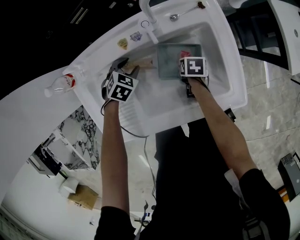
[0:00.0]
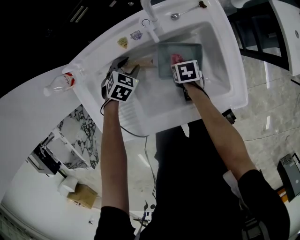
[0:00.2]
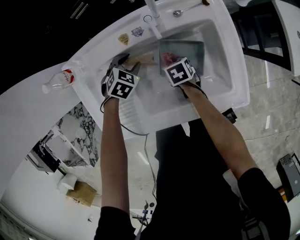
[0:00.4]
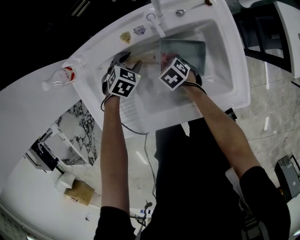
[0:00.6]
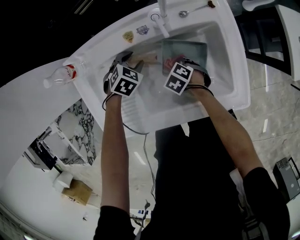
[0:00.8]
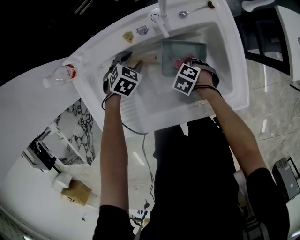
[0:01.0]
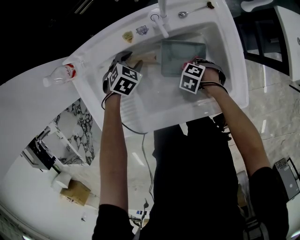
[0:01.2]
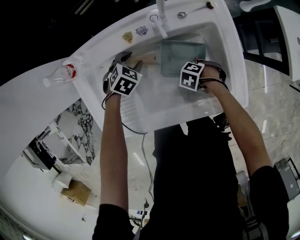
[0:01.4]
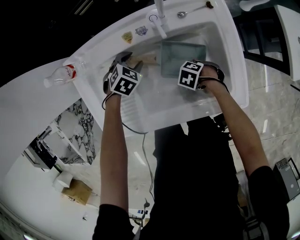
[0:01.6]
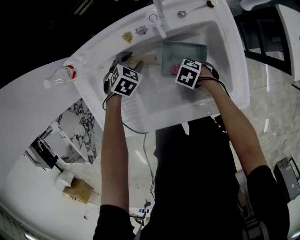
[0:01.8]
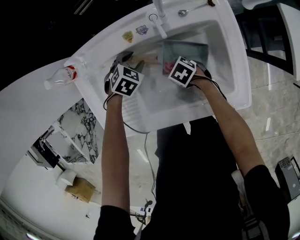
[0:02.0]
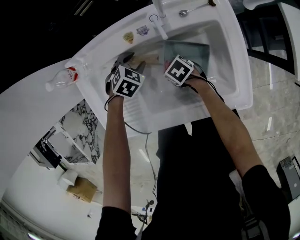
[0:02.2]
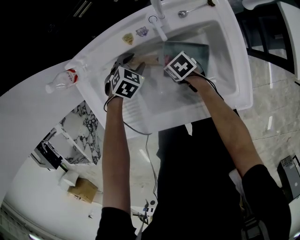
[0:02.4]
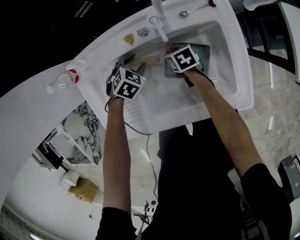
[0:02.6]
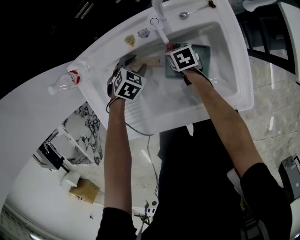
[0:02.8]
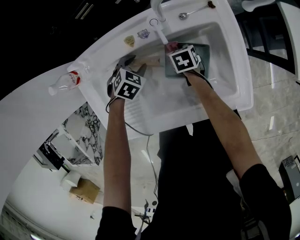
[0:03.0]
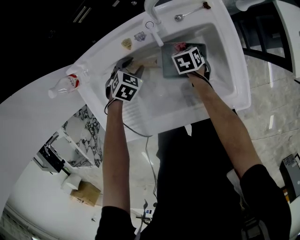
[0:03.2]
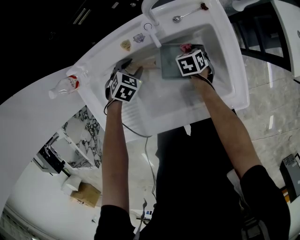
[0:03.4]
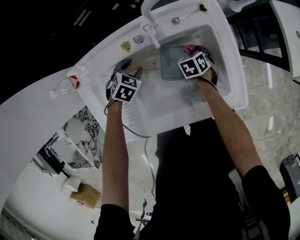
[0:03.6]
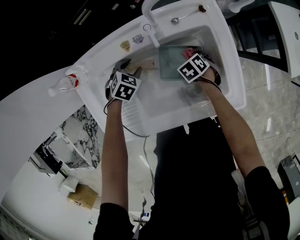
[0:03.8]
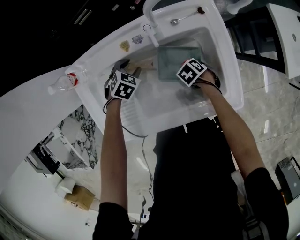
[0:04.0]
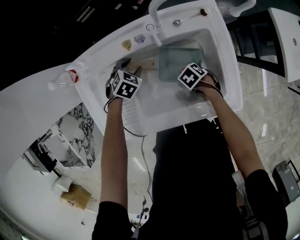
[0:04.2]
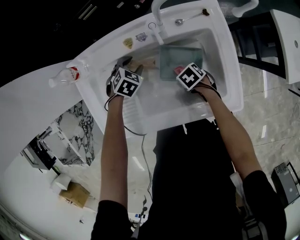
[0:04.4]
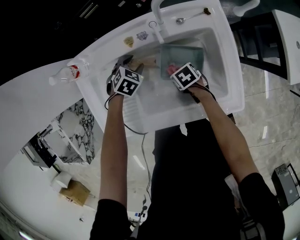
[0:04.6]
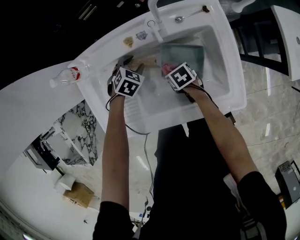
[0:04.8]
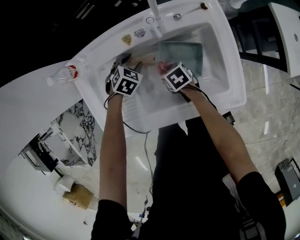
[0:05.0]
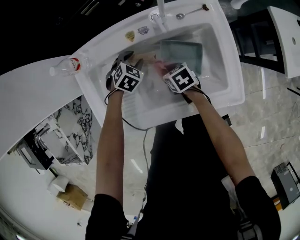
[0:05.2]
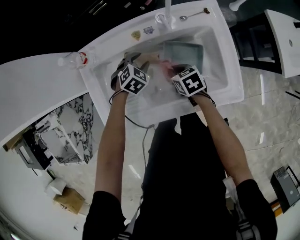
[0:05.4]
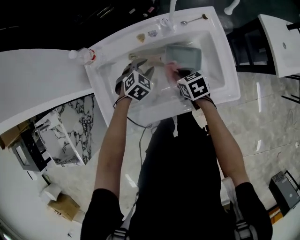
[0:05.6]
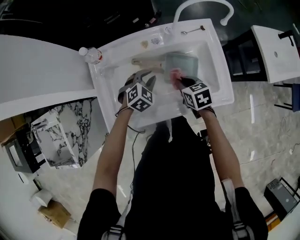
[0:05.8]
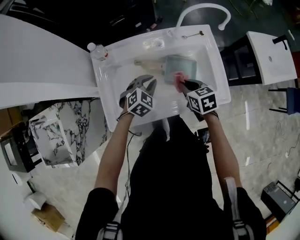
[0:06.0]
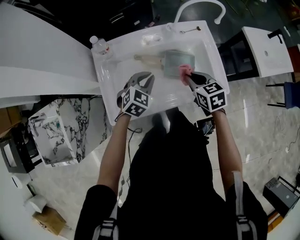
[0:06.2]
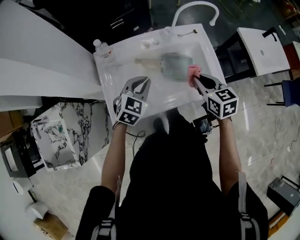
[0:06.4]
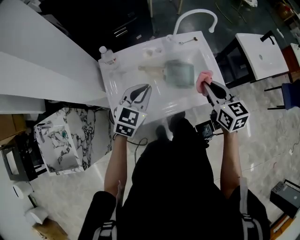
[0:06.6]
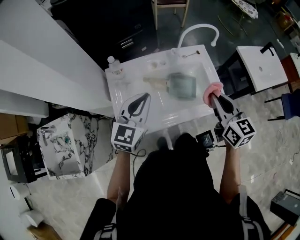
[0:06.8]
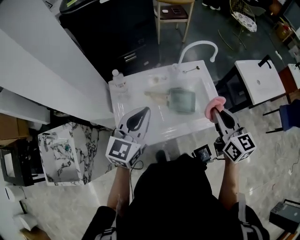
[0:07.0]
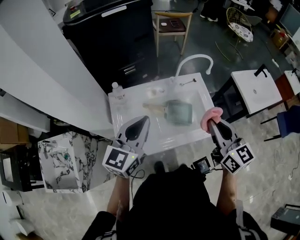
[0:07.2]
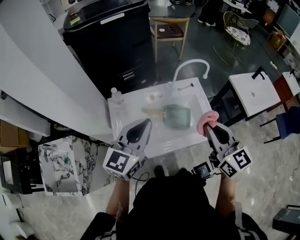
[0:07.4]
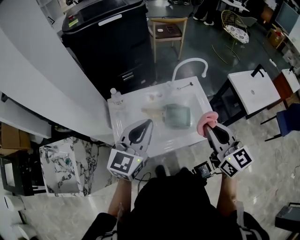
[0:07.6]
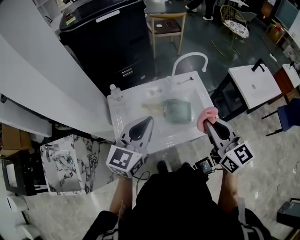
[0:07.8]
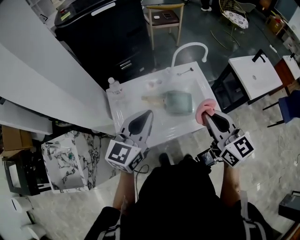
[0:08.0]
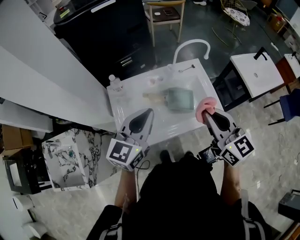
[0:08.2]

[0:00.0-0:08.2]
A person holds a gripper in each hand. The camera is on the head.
0:00.0 to 0:01.6: The right gripper rotates around the line of its fingers by about 80 degrees, counterclockwise from behind.
0:01.6 to 0:03.2: The right gripper changes place by approximately 15 cm, and twists approximately 50 degrees clockwise, seen from behind.
0:03.2 to 0:05.0: The right gripper changes place by approximately 15 cm, and changes its angle by about 30 degrees.
0:05.0 to 0:06.6: Both grippers travel together upward, about 35 cm. The right gripper angles its fingers upward, by approximately 40 degrees. The left gripper tilts its fingers about 40 degrees upward, and closes up.
0:06.6 to 0:08.2: The left gripper moves upward, approximately 15 cm, and turns by some 20 degrees. The right gripper shifts approximately 15 cm upward and backward.

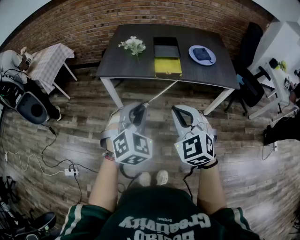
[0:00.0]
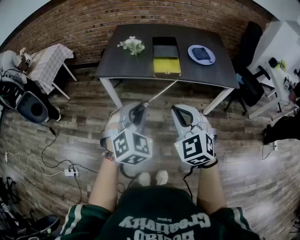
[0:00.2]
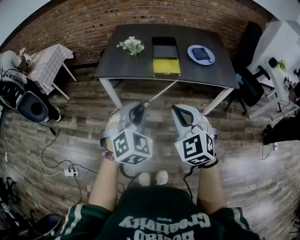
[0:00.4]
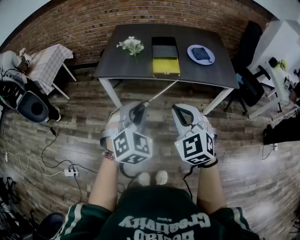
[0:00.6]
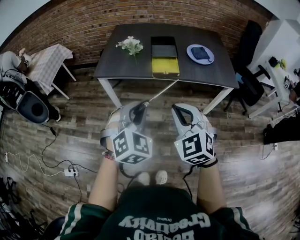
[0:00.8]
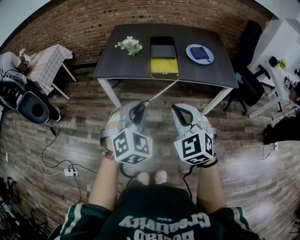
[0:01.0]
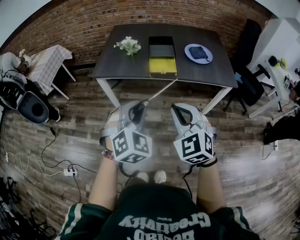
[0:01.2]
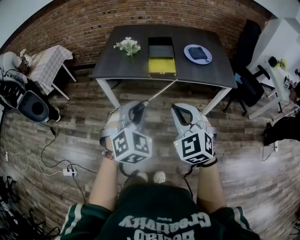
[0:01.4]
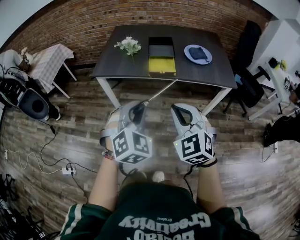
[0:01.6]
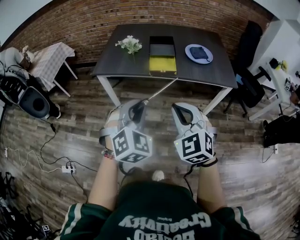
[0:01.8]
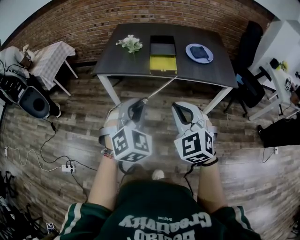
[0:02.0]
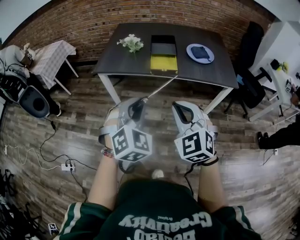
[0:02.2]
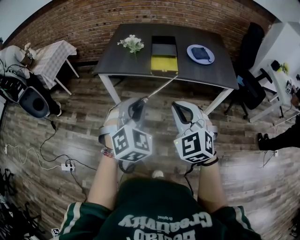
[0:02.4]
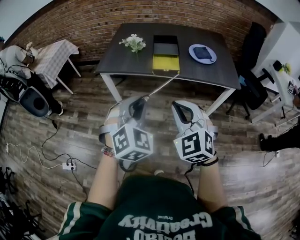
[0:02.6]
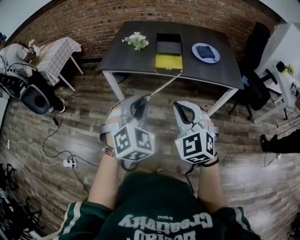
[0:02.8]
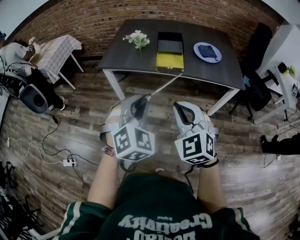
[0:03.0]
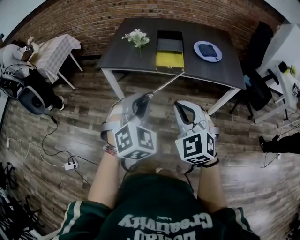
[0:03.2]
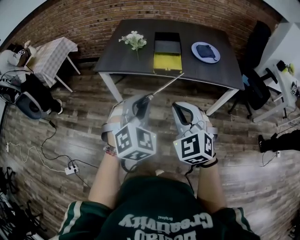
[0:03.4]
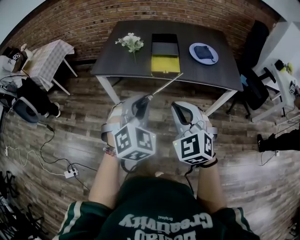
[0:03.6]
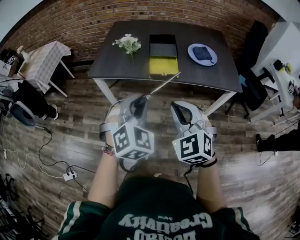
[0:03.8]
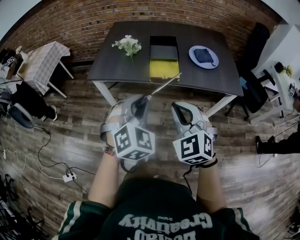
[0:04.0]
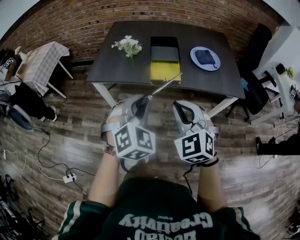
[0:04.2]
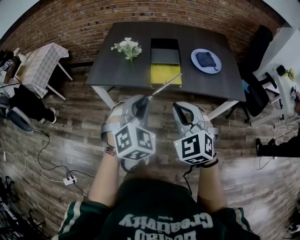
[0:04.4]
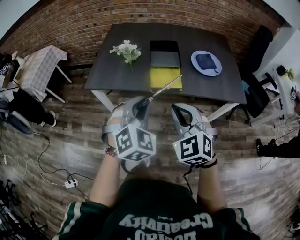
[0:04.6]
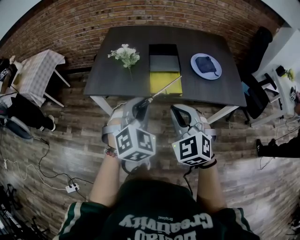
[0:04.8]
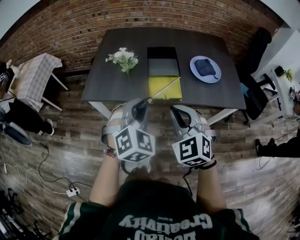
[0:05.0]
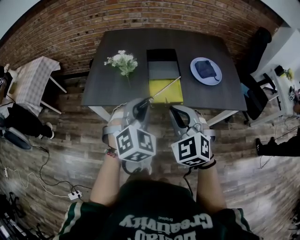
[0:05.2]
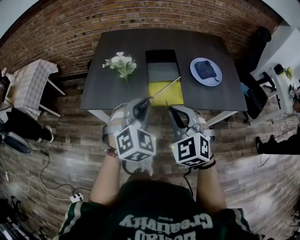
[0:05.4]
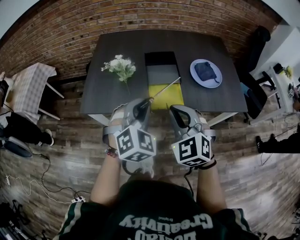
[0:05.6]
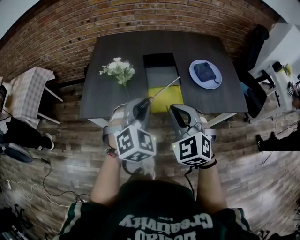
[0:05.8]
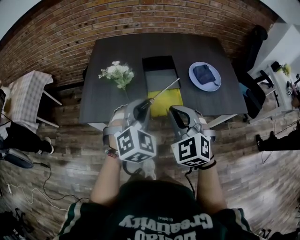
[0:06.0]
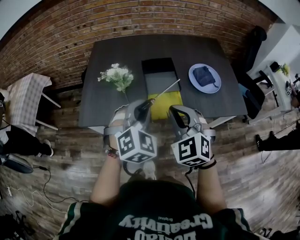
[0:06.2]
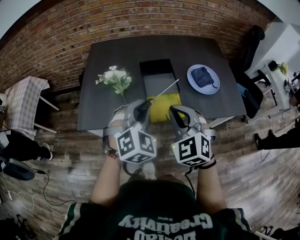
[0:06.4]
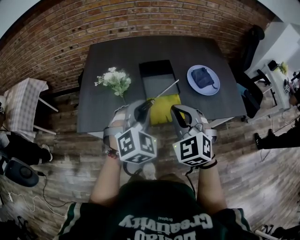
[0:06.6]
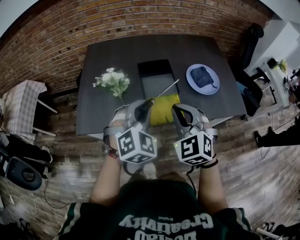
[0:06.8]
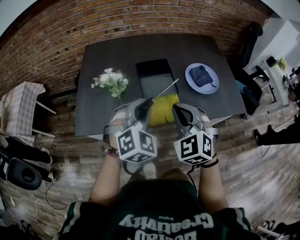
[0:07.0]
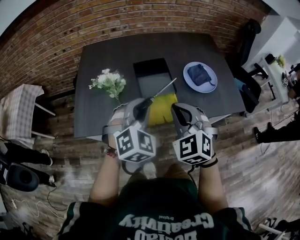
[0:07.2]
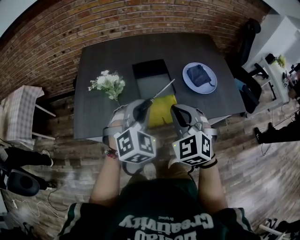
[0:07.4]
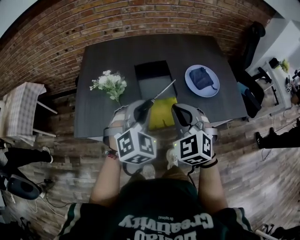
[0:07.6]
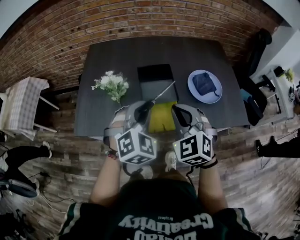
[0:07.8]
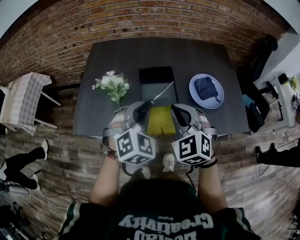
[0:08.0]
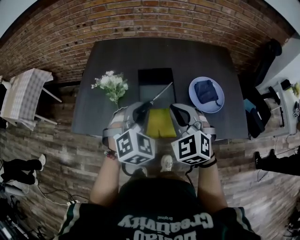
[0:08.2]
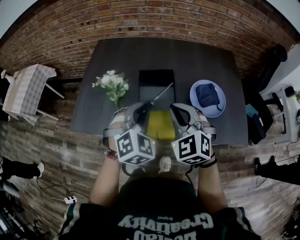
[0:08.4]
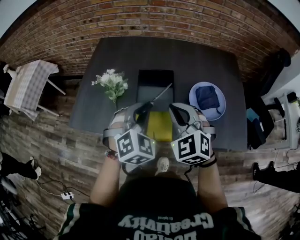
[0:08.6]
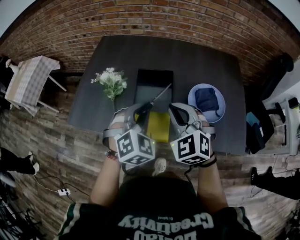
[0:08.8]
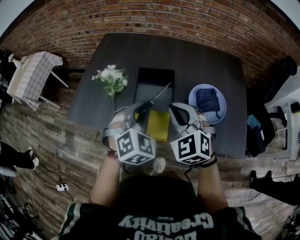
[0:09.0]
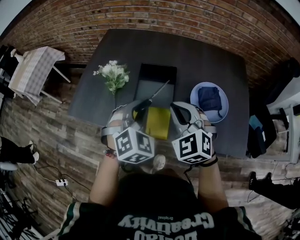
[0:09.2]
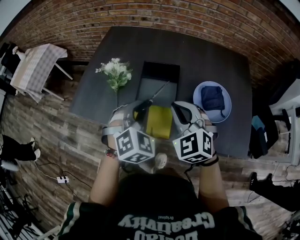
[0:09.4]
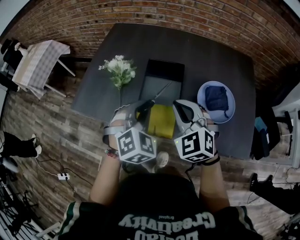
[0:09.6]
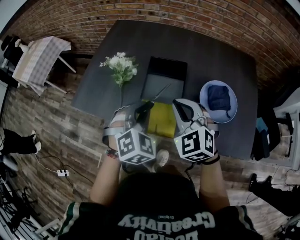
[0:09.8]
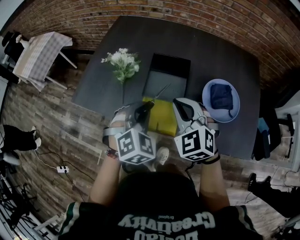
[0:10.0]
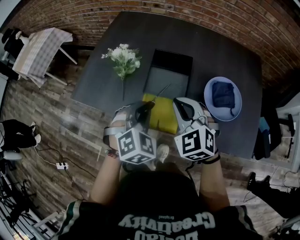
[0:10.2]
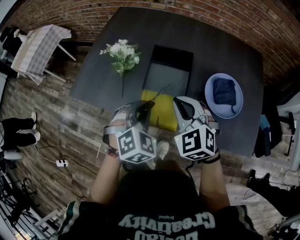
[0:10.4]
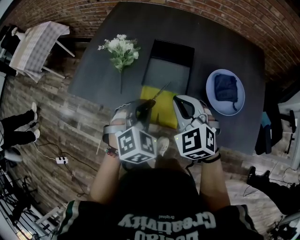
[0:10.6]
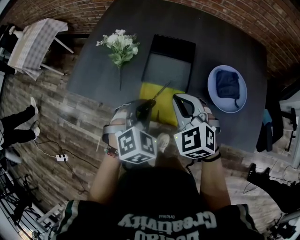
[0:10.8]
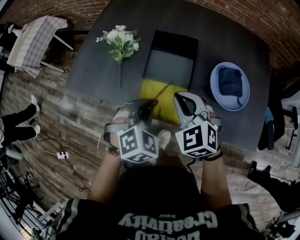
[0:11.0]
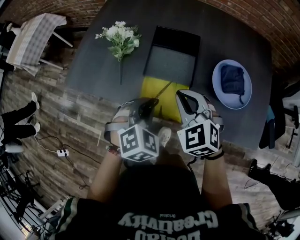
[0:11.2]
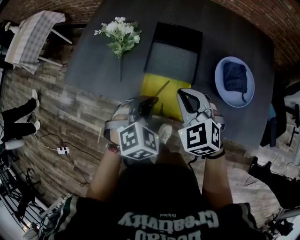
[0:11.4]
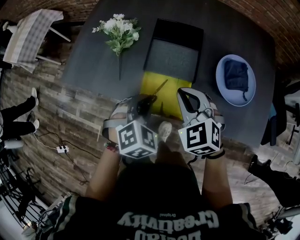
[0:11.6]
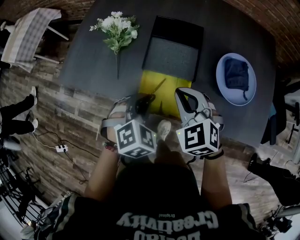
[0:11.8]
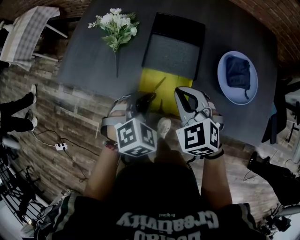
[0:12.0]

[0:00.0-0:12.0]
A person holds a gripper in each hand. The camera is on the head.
0:00.0 to 0:01.6: Both grippers travel together to the right, about 5 cm.
0:01.6 to 0:03.0: The grippers move only a little.
0:03.0 to 0:04.4: The grippers both shift forward by some 20 cm.
0:04.4 to 0:06.0: Both grippers move forward, roughly 20 cm.
0:06.0 to 0:07.6: The two grippers go approximately 10 cm forward.
0:07.6 to 0:09.0: The right gripper goes about 10 cm forward and to the right, and swivels roughly 20 degrees, while the left gripper moves to the right and forward, approximately 10 cm.
0:09.0 to 0:10.4: Both grippers move downward, some 10 cm.
0:10.4 to 0:12.0: The grippers both shift downward by approximately 10 cm.

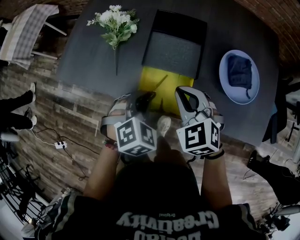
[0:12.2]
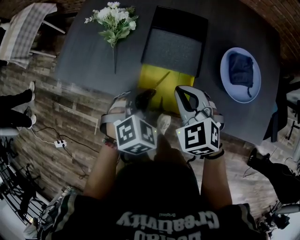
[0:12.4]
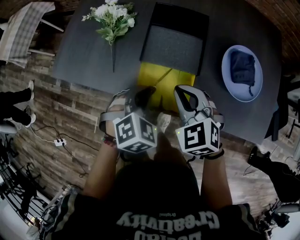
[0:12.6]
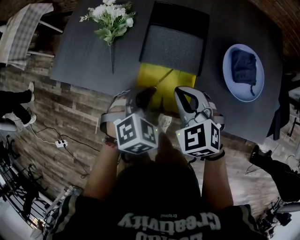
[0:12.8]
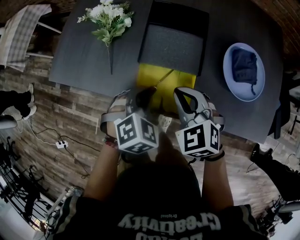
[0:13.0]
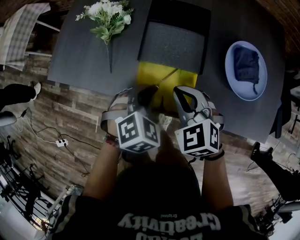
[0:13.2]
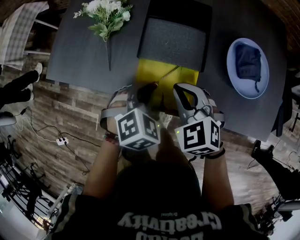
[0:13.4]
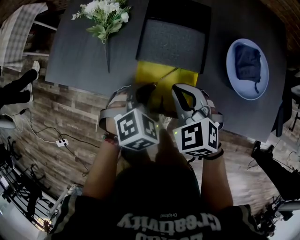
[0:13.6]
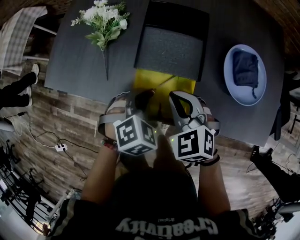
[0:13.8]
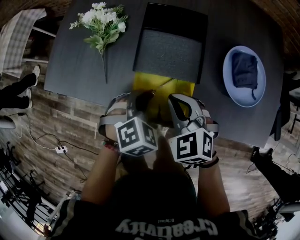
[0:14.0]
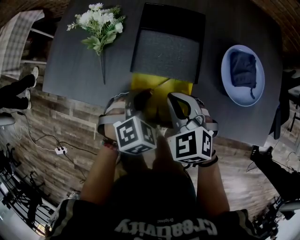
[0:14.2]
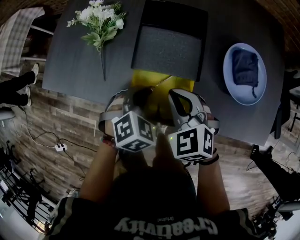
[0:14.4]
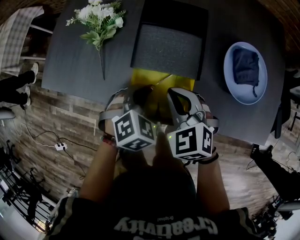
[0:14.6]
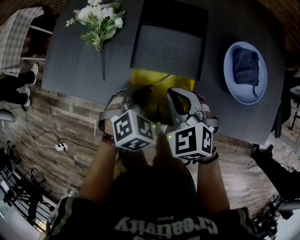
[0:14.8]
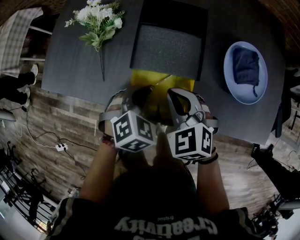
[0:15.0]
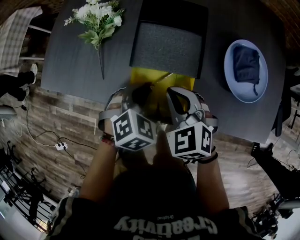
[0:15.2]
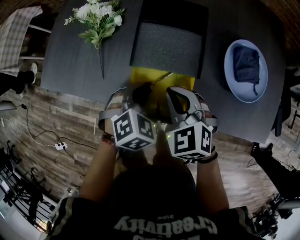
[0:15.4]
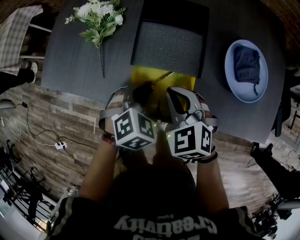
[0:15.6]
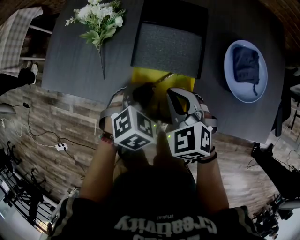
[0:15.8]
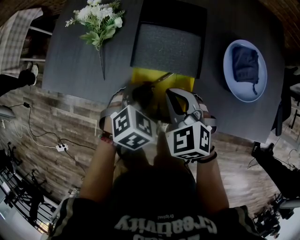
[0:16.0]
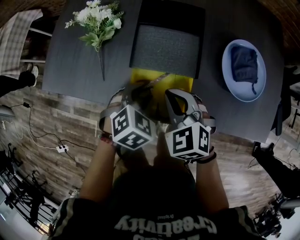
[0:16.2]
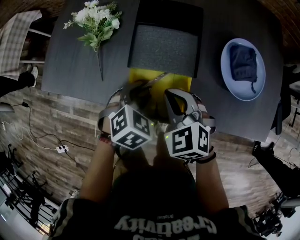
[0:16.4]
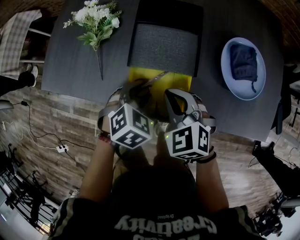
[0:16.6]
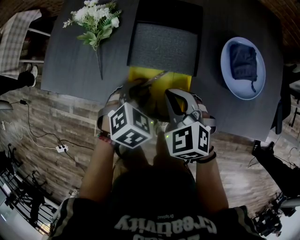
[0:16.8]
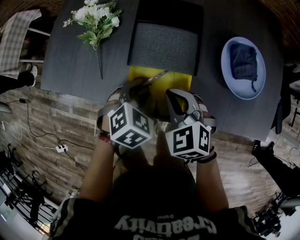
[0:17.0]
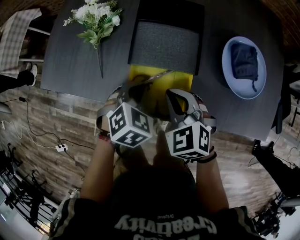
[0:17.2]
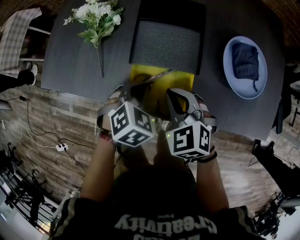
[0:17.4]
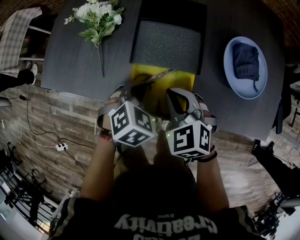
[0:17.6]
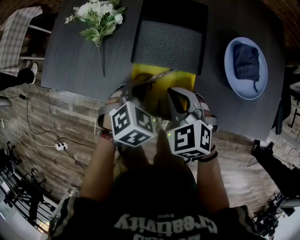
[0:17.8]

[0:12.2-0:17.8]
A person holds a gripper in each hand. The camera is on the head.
0:12.2 to 0:13.6: The grippers both shift downward by roughly 5 cm.
0:13.6 to 0:15.0: The grippers move only a little.
0:15.0 to 0:16.4: The left gripper opens its fingers.
0:16.4 to 0:17.8: The left gripper closes up.
